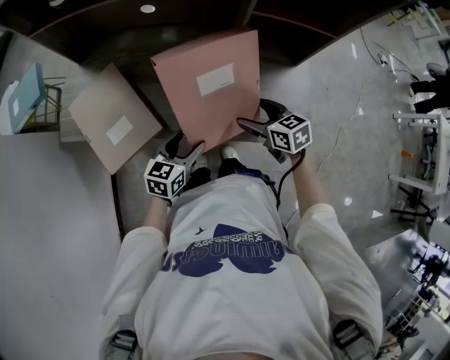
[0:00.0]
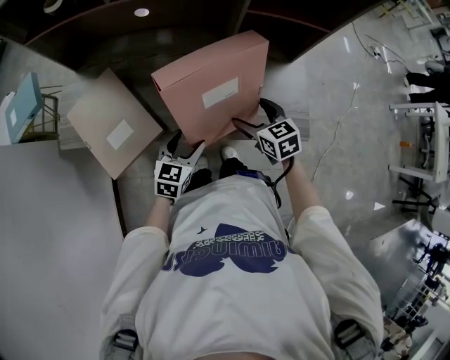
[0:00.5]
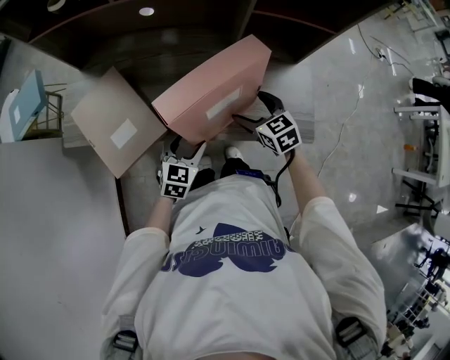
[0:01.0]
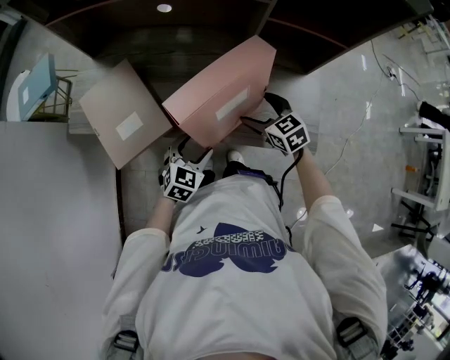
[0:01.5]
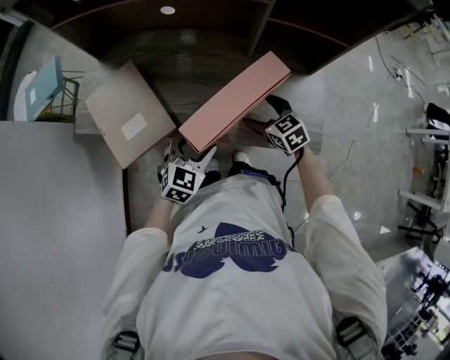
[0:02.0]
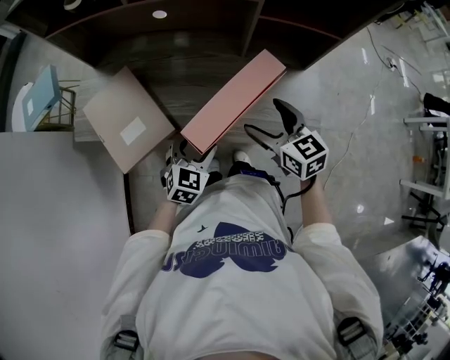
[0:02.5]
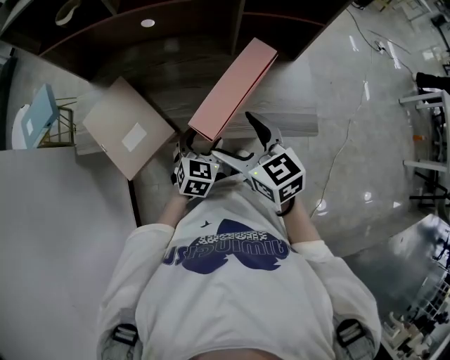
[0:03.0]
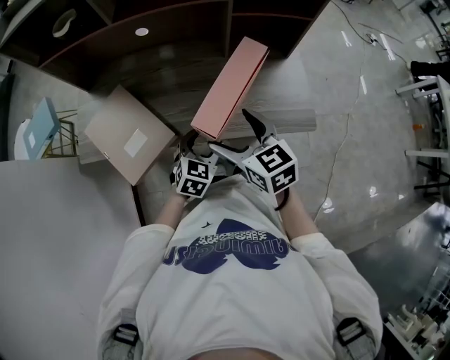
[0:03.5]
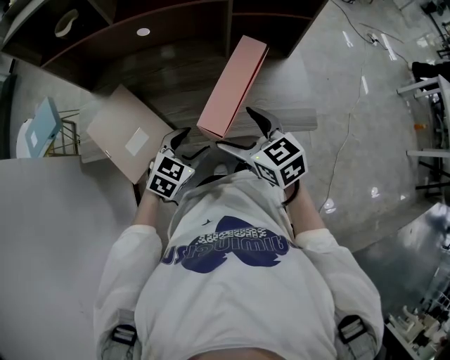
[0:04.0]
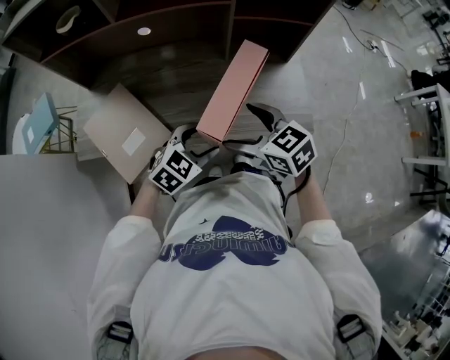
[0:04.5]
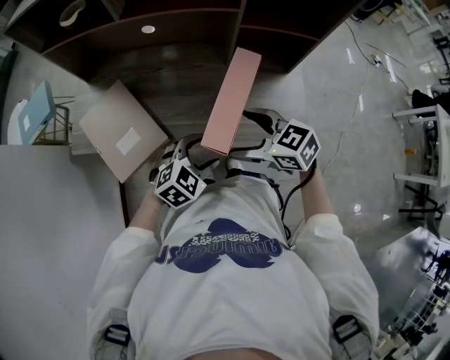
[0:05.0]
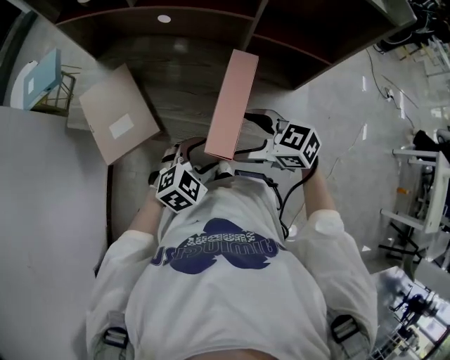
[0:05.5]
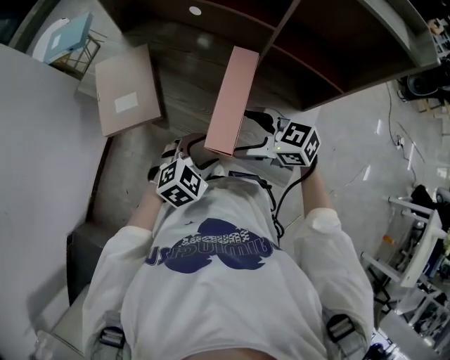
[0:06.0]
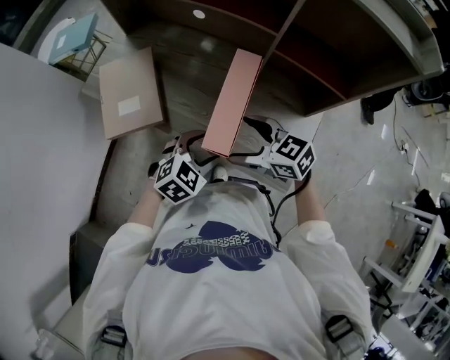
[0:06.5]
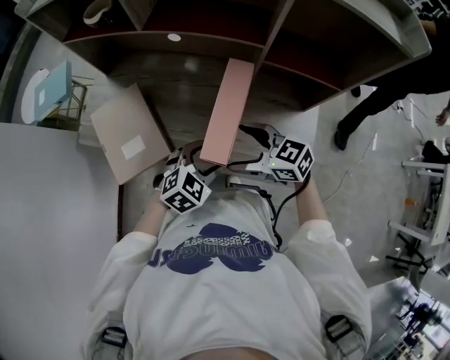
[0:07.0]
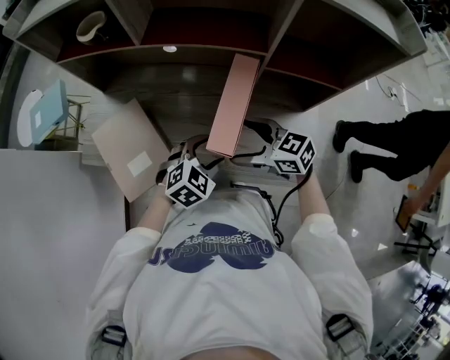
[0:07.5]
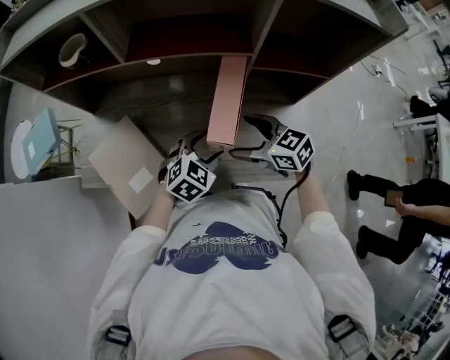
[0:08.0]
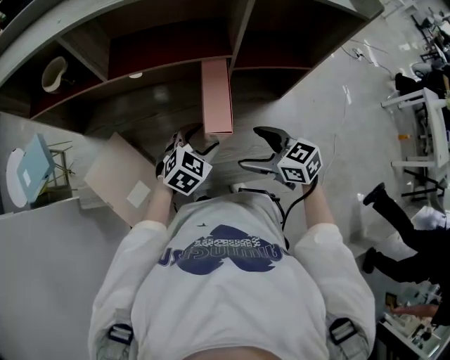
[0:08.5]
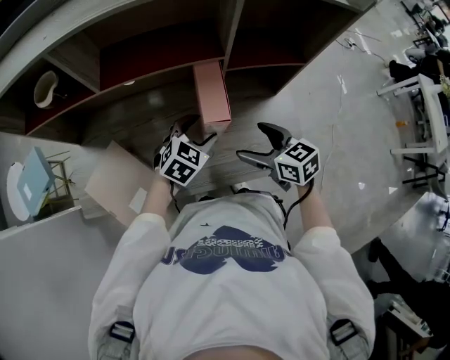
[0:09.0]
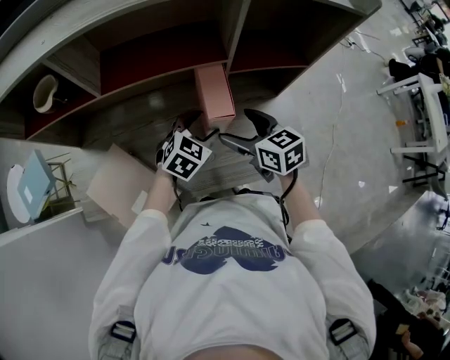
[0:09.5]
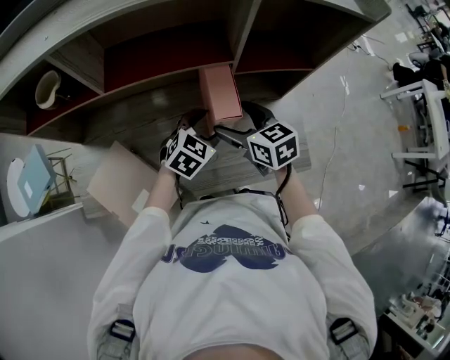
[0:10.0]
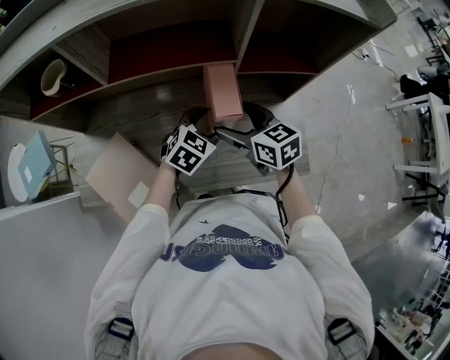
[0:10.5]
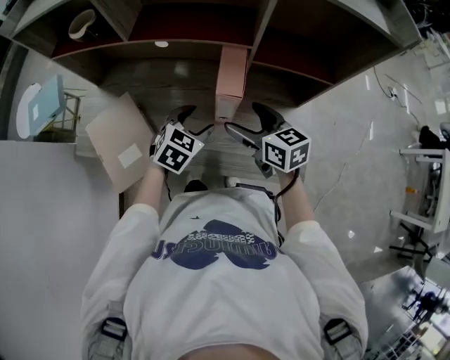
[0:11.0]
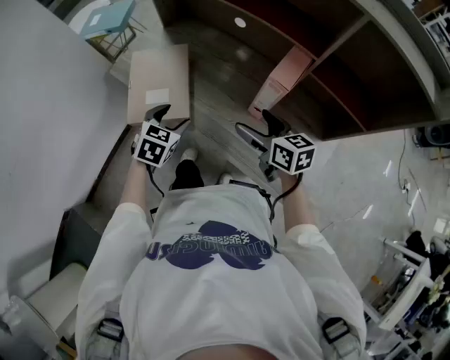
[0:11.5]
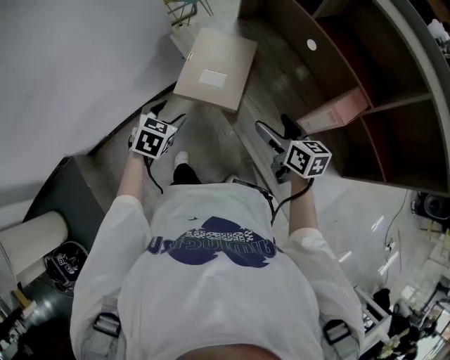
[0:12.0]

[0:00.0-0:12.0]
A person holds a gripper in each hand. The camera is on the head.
0:00.0 to 0:02.0: The left gripper swivels approximately 30 degrees.
0:02.0 to 0:04.0: The right gripper travels upward, backward and to the left by about 20 cm.
0:04.0 to 0:06.0: The right gripper shifts by some 10 cm, and changes its angle by about 60 degrees; the left gripper shifts by some 15 cm.
0:06.0 to 0:08.0: The left gripper ends up roughly 15 cm from where it was. The right gripper moves about 10 cm, and changes its angle by some 40 degrees.
0:08.0 to 0:10.0: The two grippers go some 10 cm forward. The right gripper turns by some 30 degrees.
0:10.0 to 0:12.0: The right gripper shifts by about 20 cm, and changes its angle by about 50 degrees. Meanwhile the left gripper ends up about 40 cm from where it was, and rotates some 80 degrees.

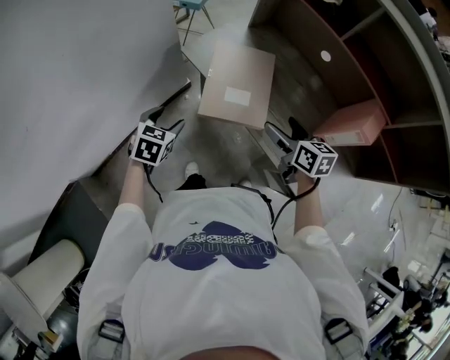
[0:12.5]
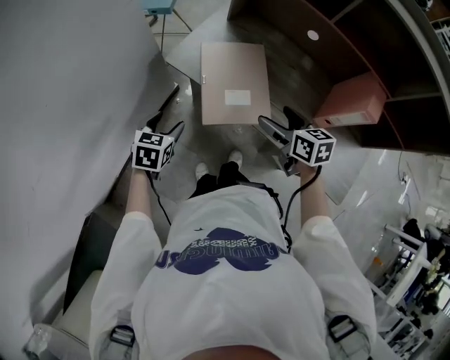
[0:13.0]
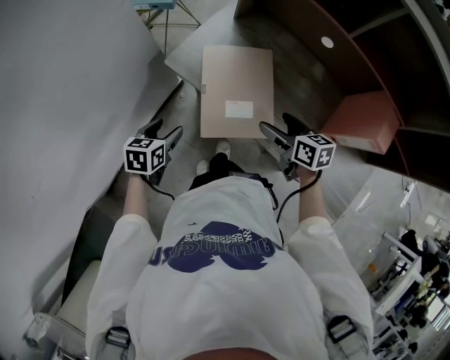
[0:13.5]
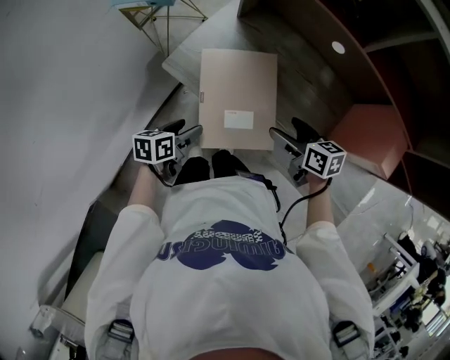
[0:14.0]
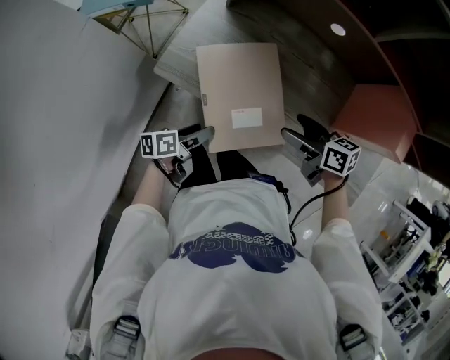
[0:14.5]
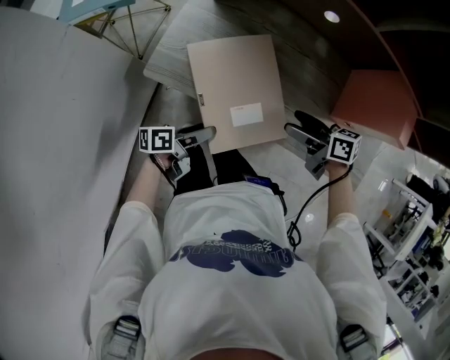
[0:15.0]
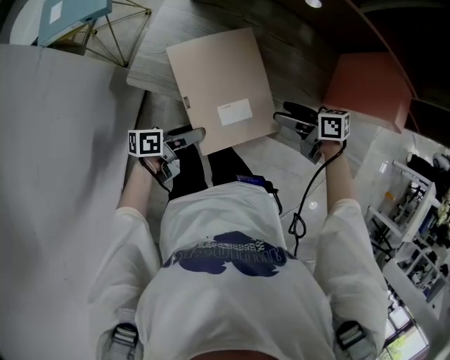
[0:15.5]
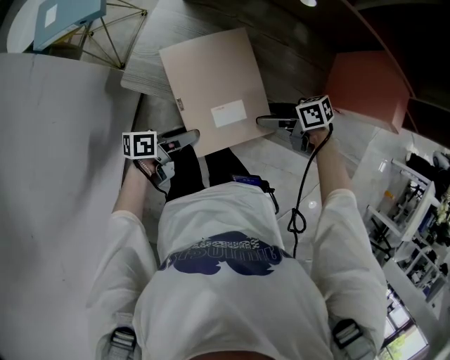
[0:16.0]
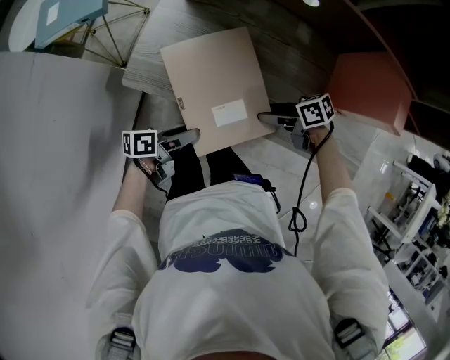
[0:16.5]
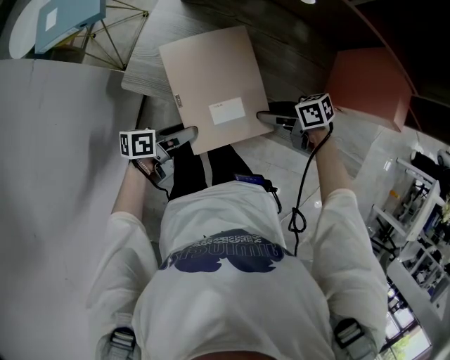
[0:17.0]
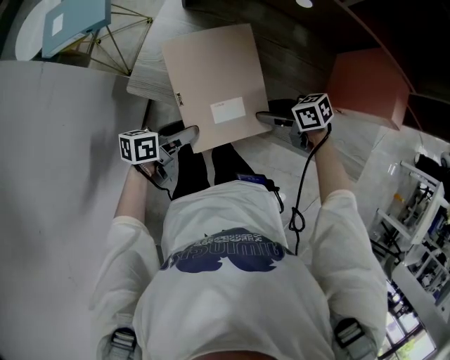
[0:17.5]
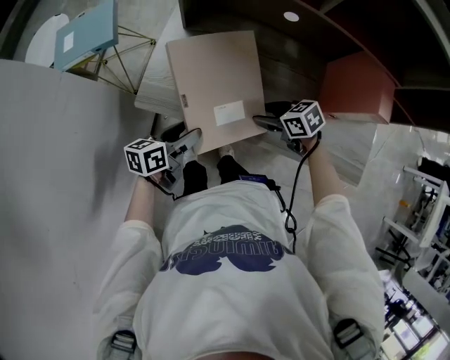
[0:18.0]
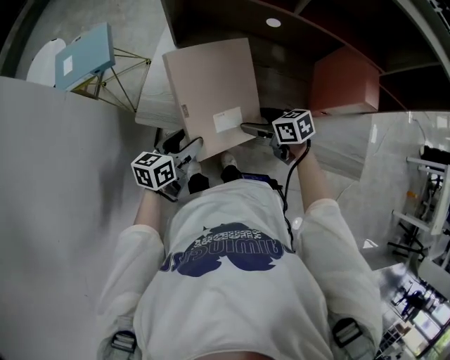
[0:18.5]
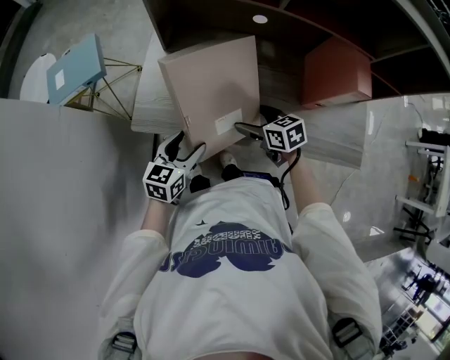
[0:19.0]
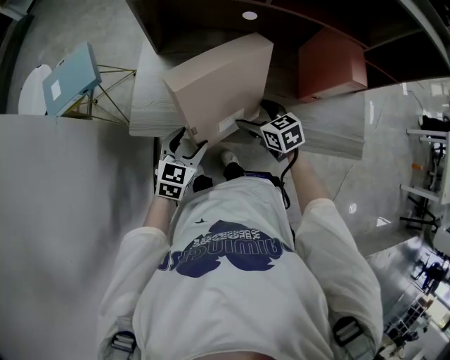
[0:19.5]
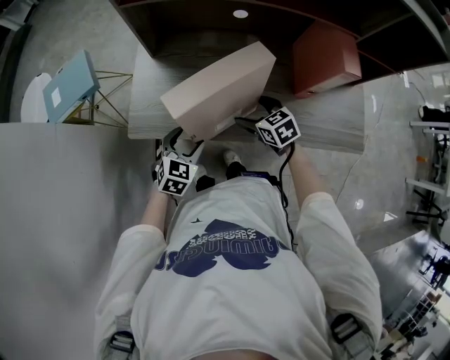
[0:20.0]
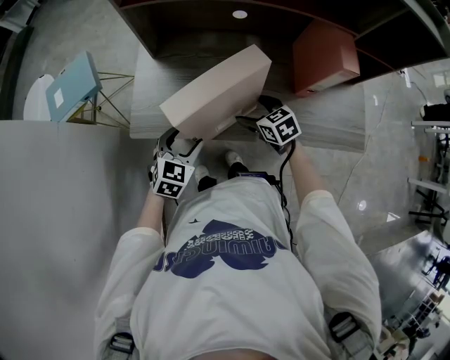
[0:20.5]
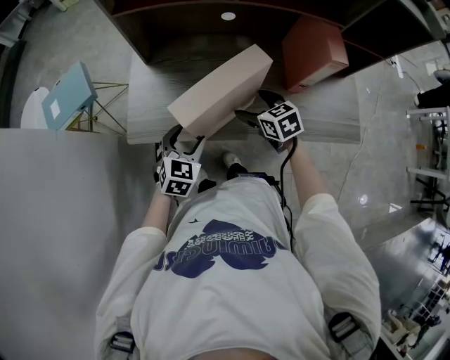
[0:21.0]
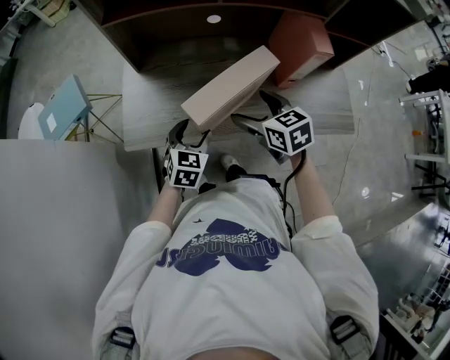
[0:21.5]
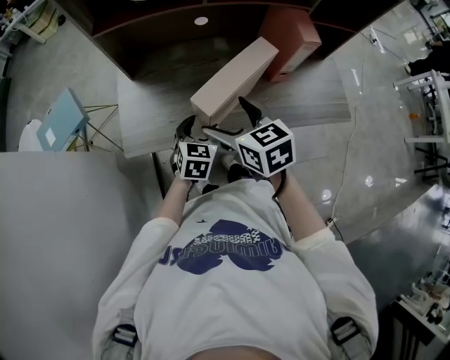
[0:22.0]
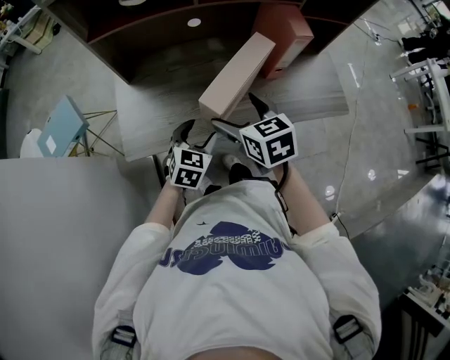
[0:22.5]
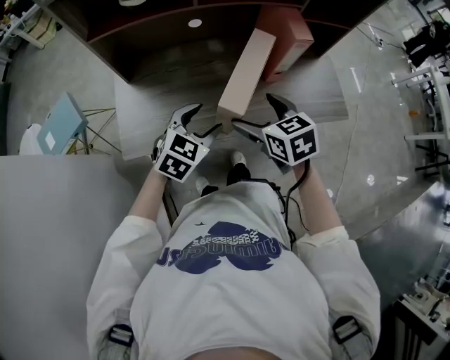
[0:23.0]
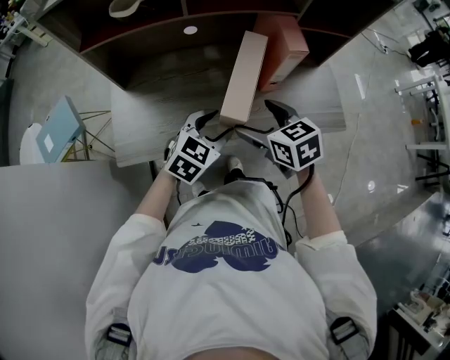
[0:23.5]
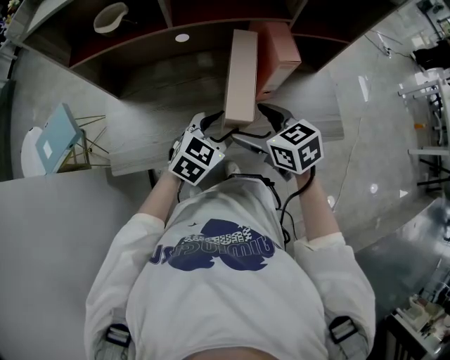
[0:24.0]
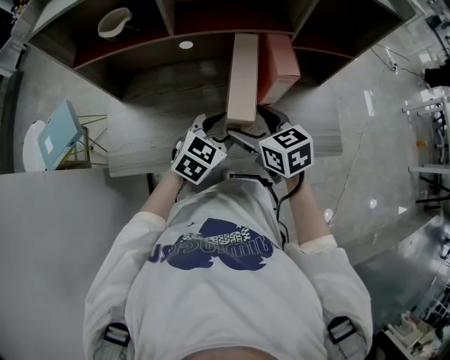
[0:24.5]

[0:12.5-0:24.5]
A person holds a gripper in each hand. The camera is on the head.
0:12.5 to 0:14.5: The left gripper shifts about 20 cm forward, downward and to the right, and turns by approximately 70 degrees, while the right gripper is displaced forward and downward by roughly 15 cm, and swivels approximately 20 degrees.
0:14.5 to 0:16.5: The right gripper goes some 10 cm downward, turns by some 20 degrees, and closes.
0:16.5 to 0:18.5: The left gripper shifts approximately 10 cm upward, and swivels about 40 degrees. The right gripper shifts approximately 5 cm upward, and swivels roughly 30 degrees.
0:18.5 to 0:20.5: The right gripper turns by roughly 20 degrees; the left gripper twists roughly 50 degrees clockwise, seen from behind.
0:20.5 to 0:22.5: The left gripper goes approximately 10 cm to the right, while the right gripper goes roughly 15 cm upward, and rotates roughly 30 degrees.
0:22.5 to 0:24.5: The left gripper travels to the right, forward and upward by approximately 20 cm. Meanwhile the right gripper shifts approximately 15 cm to the right and forward.

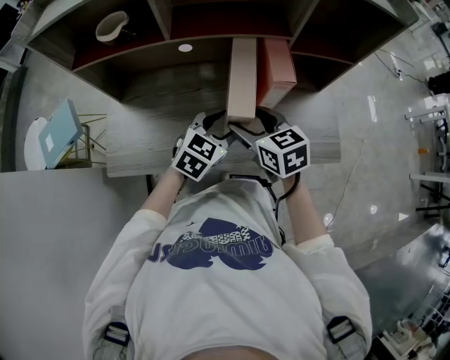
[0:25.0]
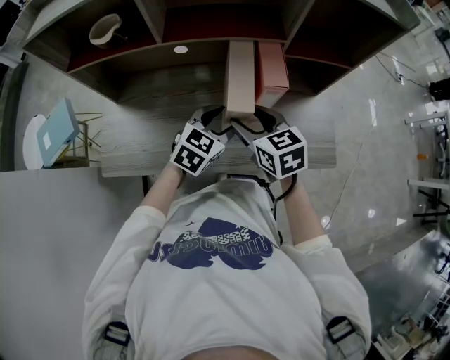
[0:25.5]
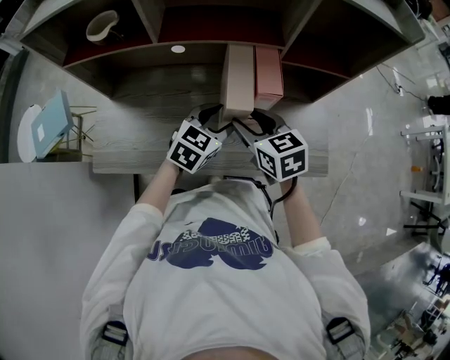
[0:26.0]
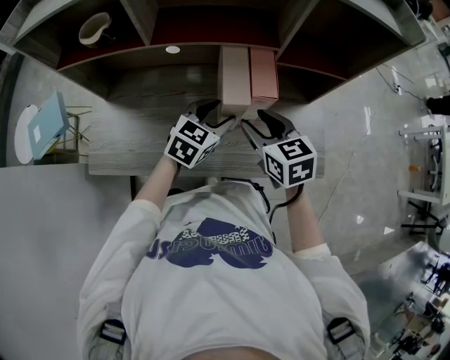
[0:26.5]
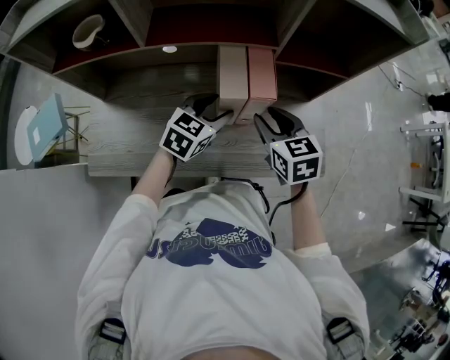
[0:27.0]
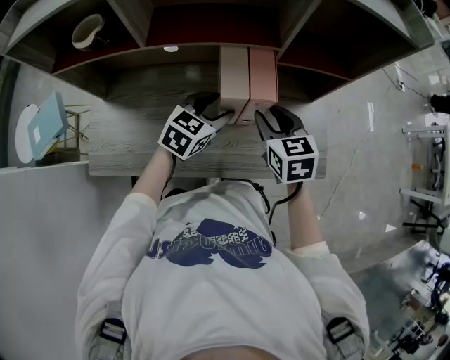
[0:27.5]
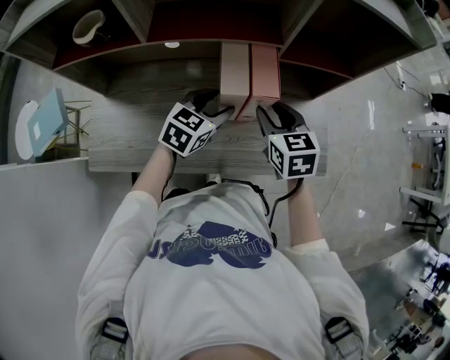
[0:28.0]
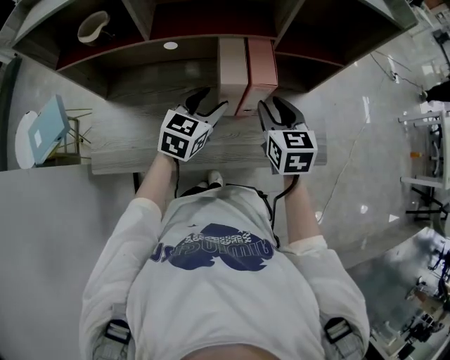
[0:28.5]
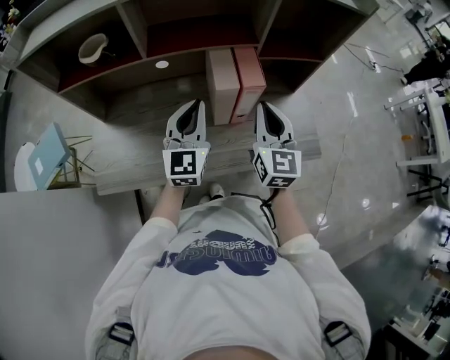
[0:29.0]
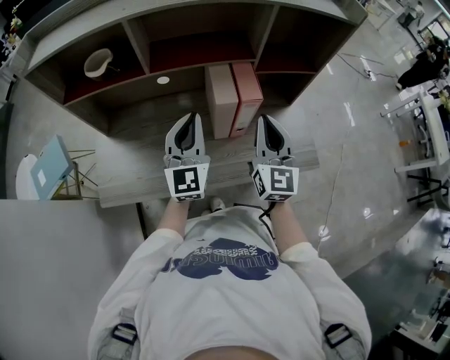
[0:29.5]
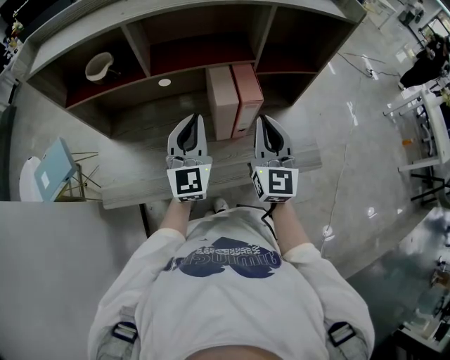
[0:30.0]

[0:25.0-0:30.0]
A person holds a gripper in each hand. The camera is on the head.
0:25.0 to 0:27.5: The left gripper goes roughly 10 cm forward; the right gripper travels to the right and forward by about 15 cm, and closes up.
0:27.5 to 0:30.0: The right gripper is displaced upward and backward by roughly 15 cm, and tilts its fingers about 40 degrees upward. Meanwhile the left gripper goes roughly 15 cm upward, to the left and backward, tilts its fingers some 40 degrees upward, and closes its fingers.
